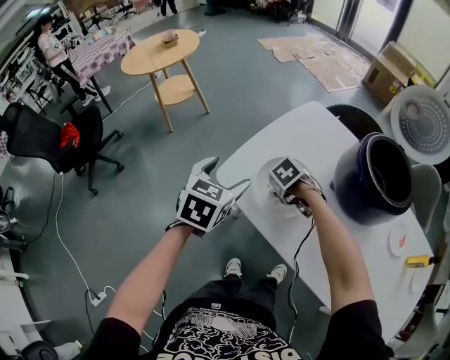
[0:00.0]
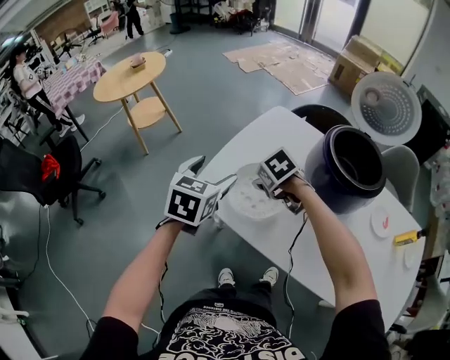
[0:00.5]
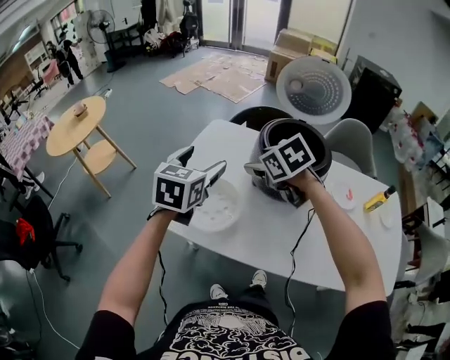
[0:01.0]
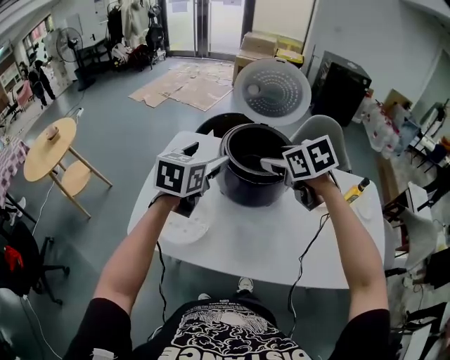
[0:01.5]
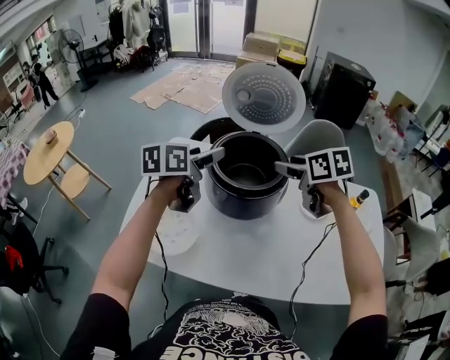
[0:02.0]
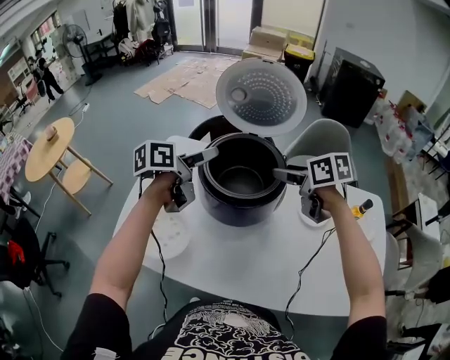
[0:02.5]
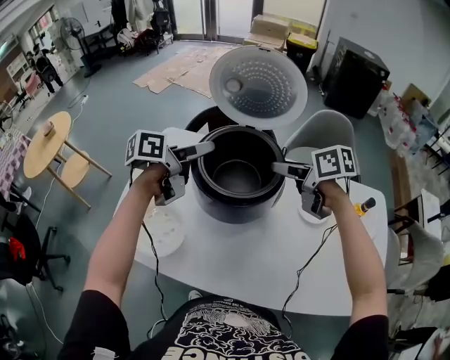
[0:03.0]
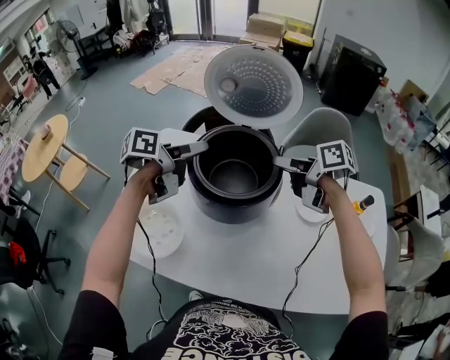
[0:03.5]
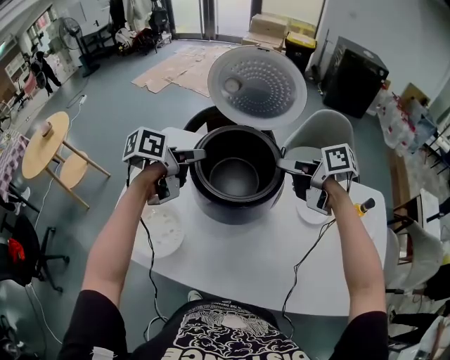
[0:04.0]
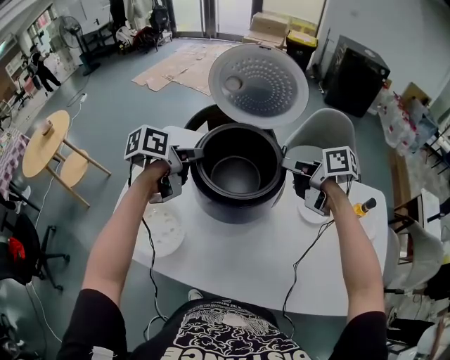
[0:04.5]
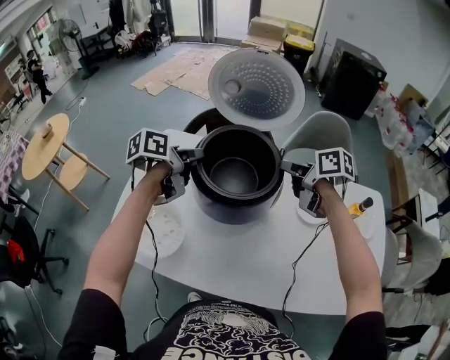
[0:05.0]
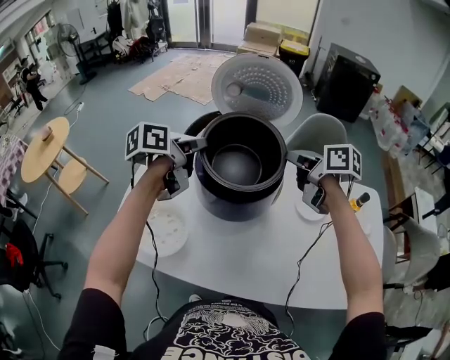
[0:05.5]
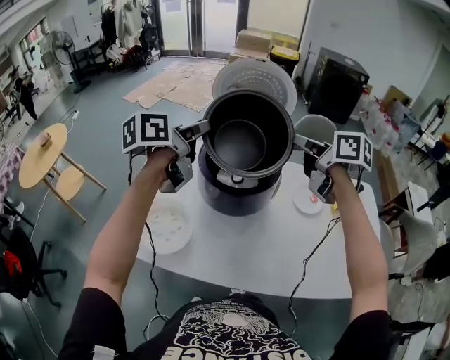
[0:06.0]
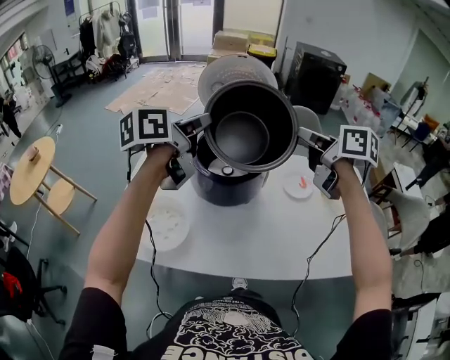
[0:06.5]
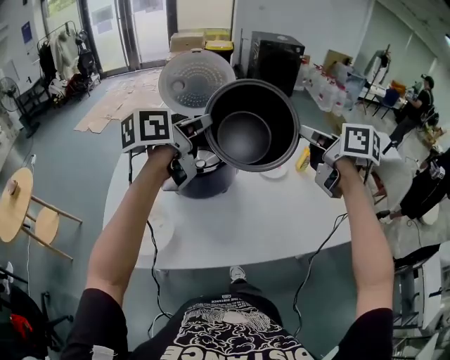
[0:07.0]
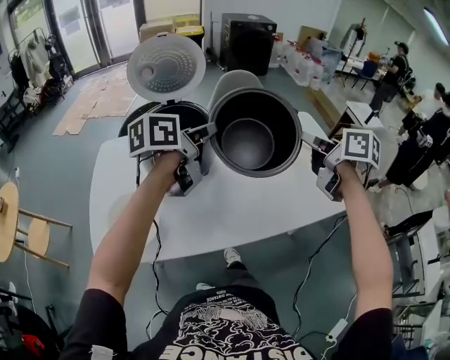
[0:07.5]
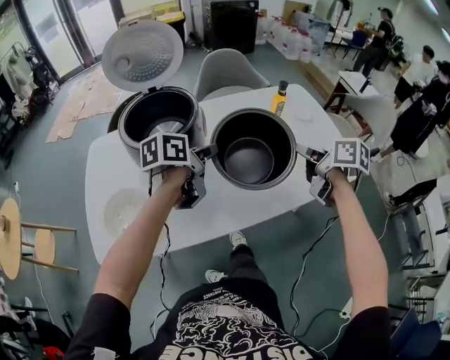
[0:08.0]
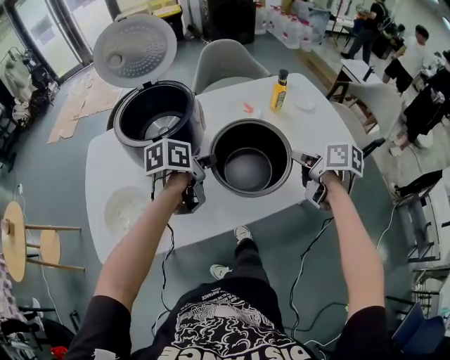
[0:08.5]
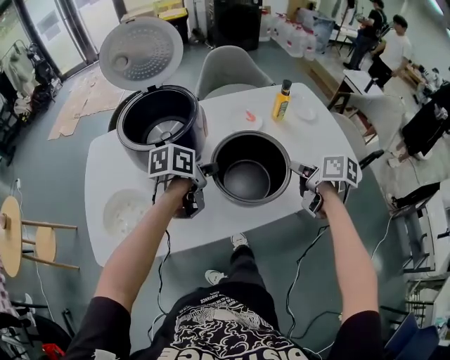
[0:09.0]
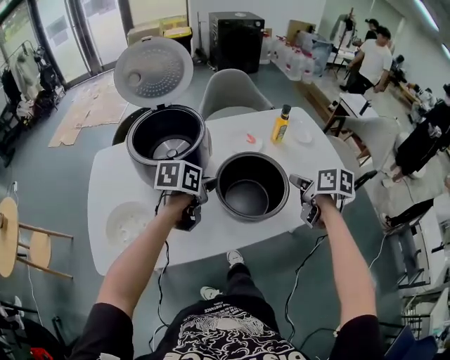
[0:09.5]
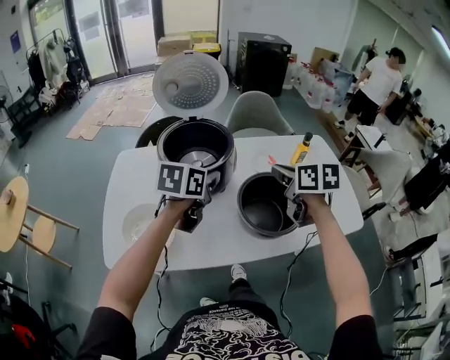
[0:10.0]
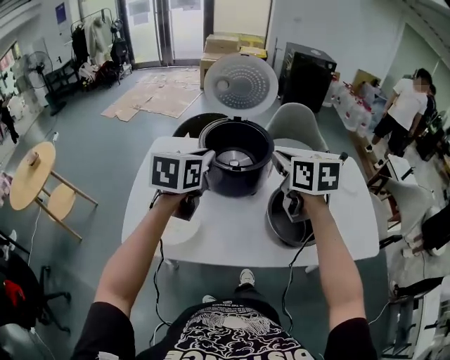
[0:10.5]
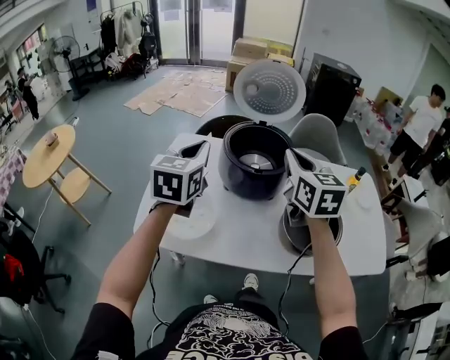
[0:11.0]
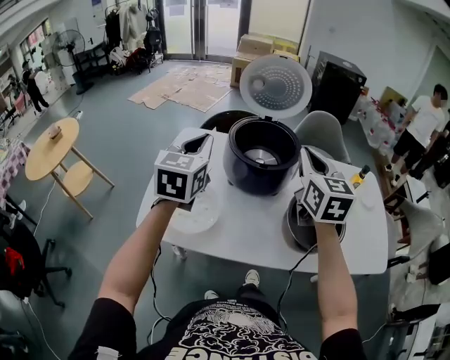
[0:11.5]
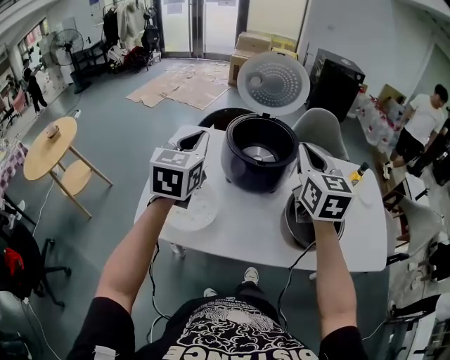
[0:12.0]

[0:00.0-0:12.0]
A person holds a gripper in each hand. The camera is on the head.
0.0 to 2.0 s: The two grippers travel together, some 40 cm. The right gripper tilts its fingers roughly 50 degrees upward. The left gripper swivels approximately 40 degrees.
2.0 to 4.0 s: The left gripper shifts approximately 10 cm downward and forward, changes its angle by approximately 30 degrees, and closes up, while the right gripper moves forward, downward and to the right, approximately 10 cm, and rotates about 40 degrees.
4.0 to 6.0 s: The left gripper travels upward by roughly 15 cm, and swivels about 20 degrees; the right gripper heads upward and backward, covering about 15 cm, turns by about 30 degrees, and closes.
6.0 to 8.0 s: The left gripper changes place by approximately 35 cm, and rotates about 40 degrees. Meanwhile the right gripper changes place by approximately 40 cm, and turns by some 40 degrees.
8.0 to 10.0 s: The right gripper heads to the left, covering about 15 cm, and turns by about 30 degrees; the left gripper is displaced to the left by approximately 5 cm, and swivels some 30 degrees.
10.0 to 12.0 s: Both grippers move to the left and upward, about 20 cm. The right gripper rotates some 30 degrees, while the left gripper turns by roughly 40 degrees.

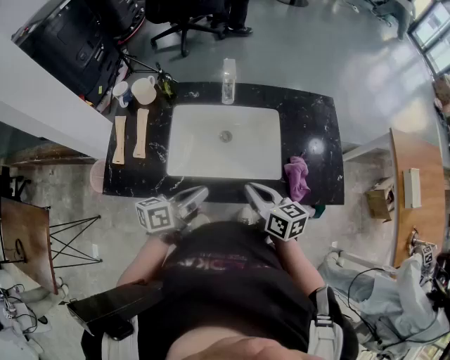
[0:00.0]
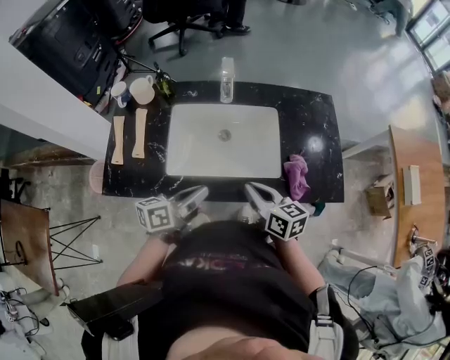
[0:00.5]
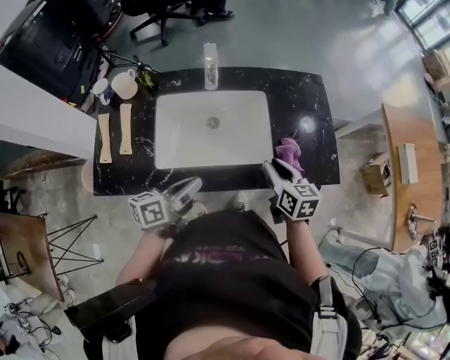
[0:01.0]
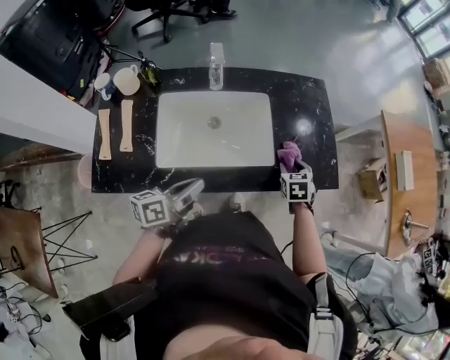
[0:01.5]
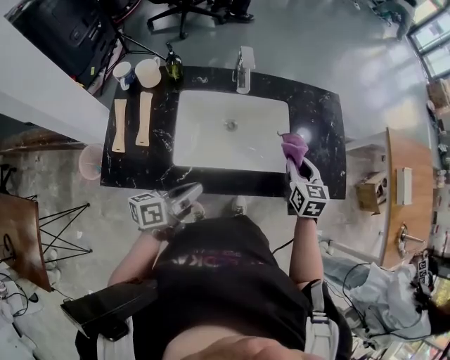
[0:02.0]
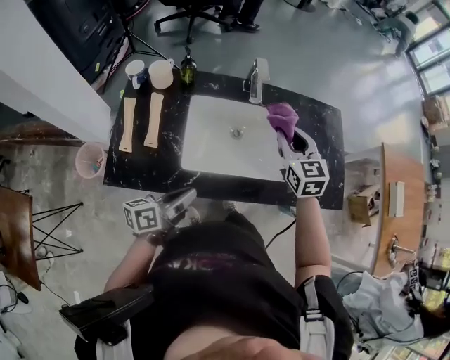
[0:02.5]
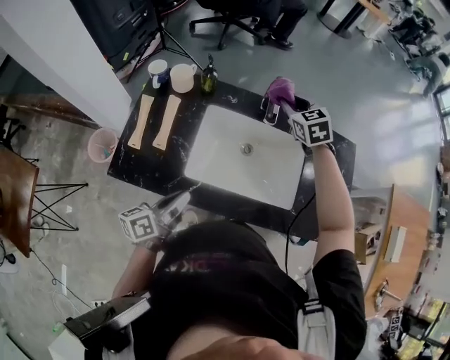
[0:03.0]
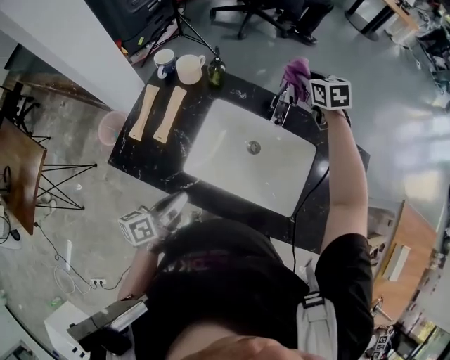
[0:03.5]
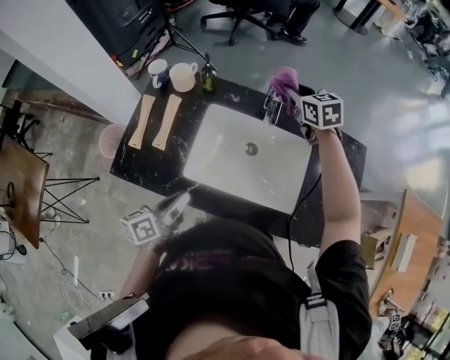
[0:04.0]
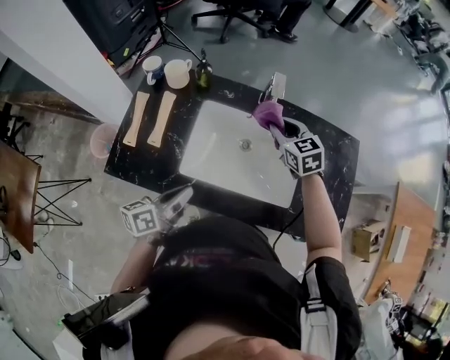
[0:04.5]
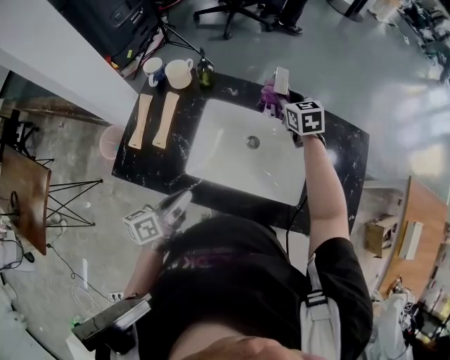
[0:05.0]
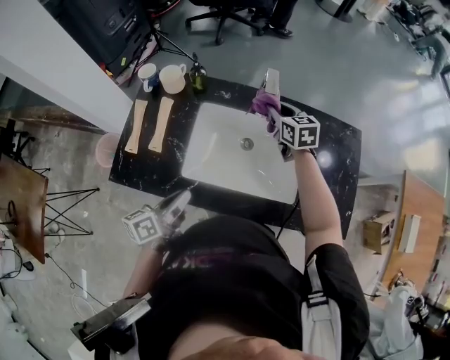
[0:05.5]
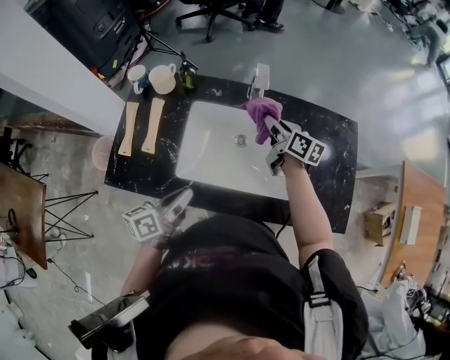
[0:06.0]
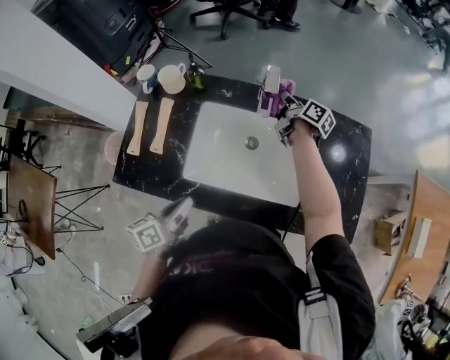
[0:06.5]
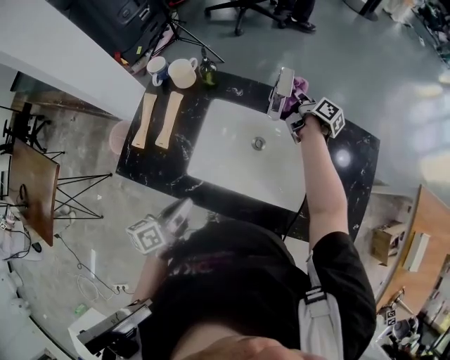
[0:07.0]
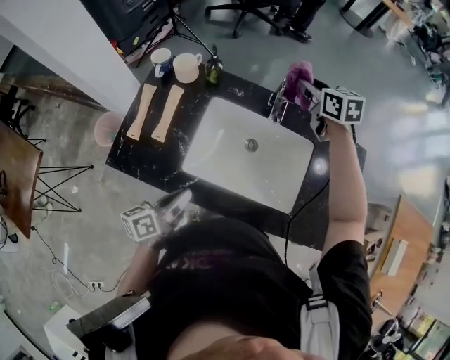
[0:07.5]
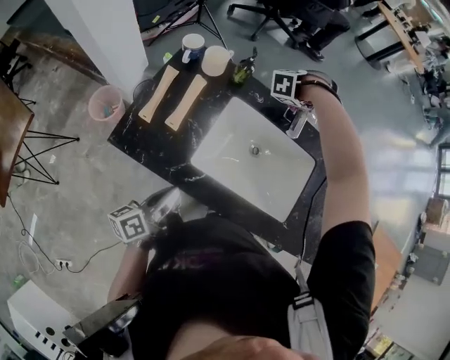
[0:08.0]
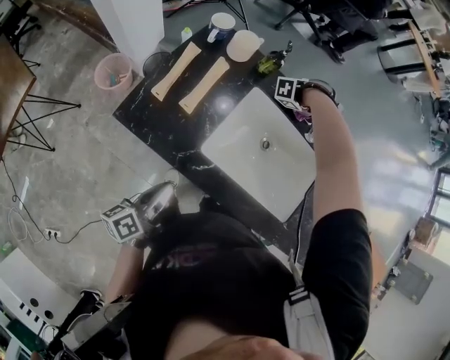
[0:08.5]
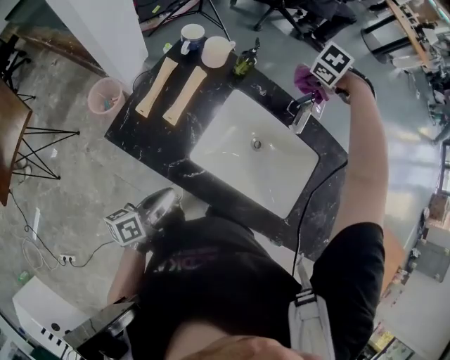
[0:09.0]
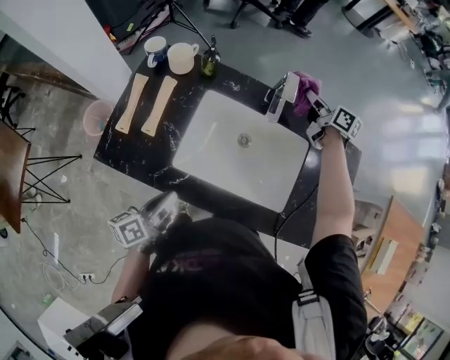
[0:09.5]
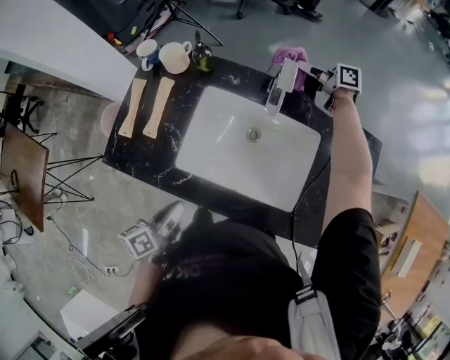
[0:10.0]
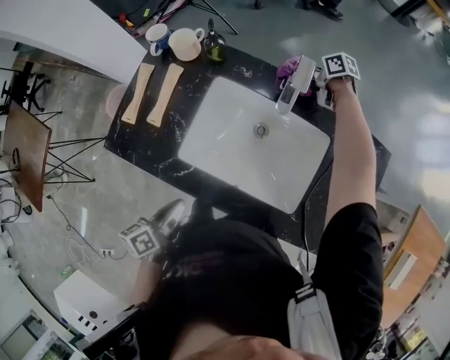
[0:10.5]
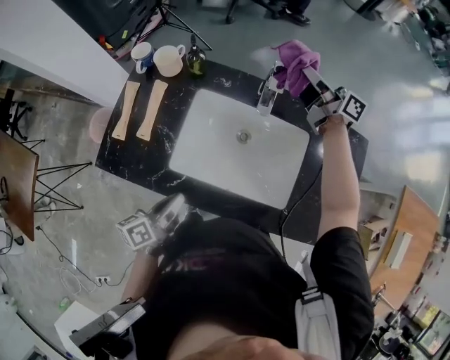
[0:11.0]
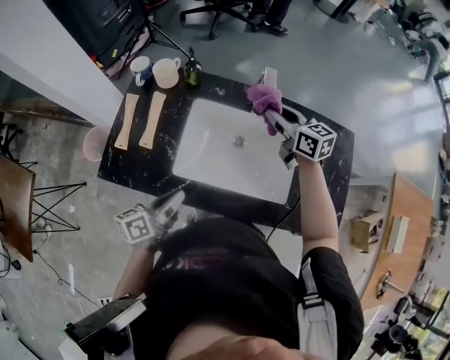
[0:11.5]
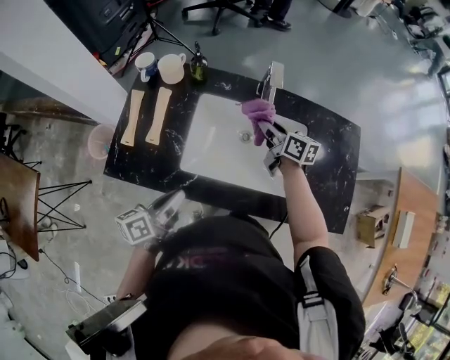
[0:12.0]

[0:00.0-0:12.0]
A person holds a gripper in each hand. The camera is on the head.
0.0 to 2.0 s: The left gripper changes place by roughly 5 cm; the right gripper reaches approximately 10 cm downward, then returns, and changes its angle by approximately 40 degrees.
2.0 to 4.0 s: The right gripper moves roughly 35 cm, and rotates roughly 40 degrees; the left gripper ends up approximately 5 cm from where it was, and rotates some 30 degrees.
4.0 to 6.0 s: The right gripper moves forward and backward over some 10 cm, changing direction 2 times, and twists approximately 50 degrees clockwise, seen from behind.
6.0 to 8.0 s: The right gripper moves up and down over some 15 cm, changing direction 2 times, and points its fingers approximately 40 degrees further downward. Meanwhile the left gripper shifts by approximately 10 cm, and rotates about 20 degrees.
8.0 to 10.0 s: The right gripper goes up and down, roughly 15 cm each way, reversing 2 times, and tips its fingers upward by approximately 40 degrees; the left gripper changes place by about 5 cm.
10.0 to 12.0 s: The right gripper goes up and down, roughly 20 cm each way, reversing 2 times, and rotates roughly 30 degrees.

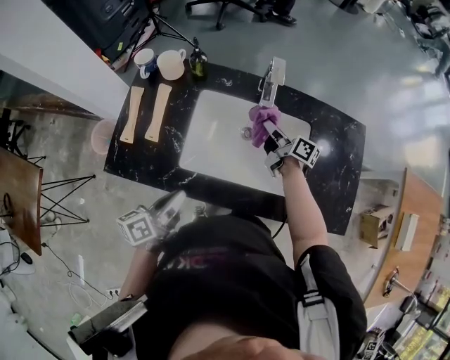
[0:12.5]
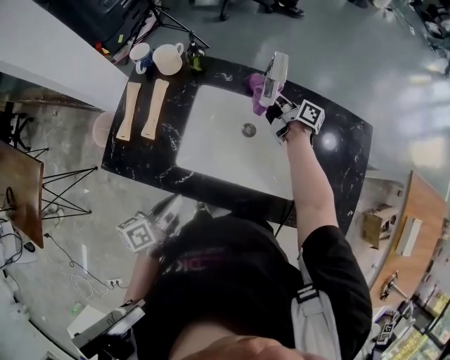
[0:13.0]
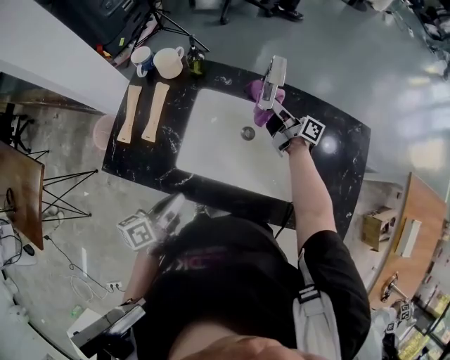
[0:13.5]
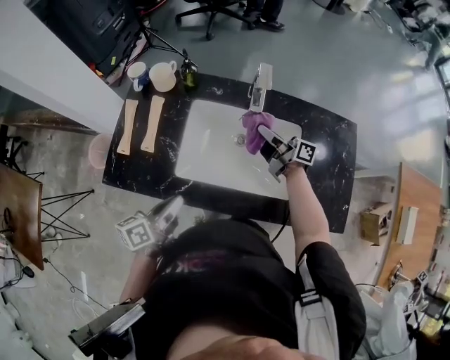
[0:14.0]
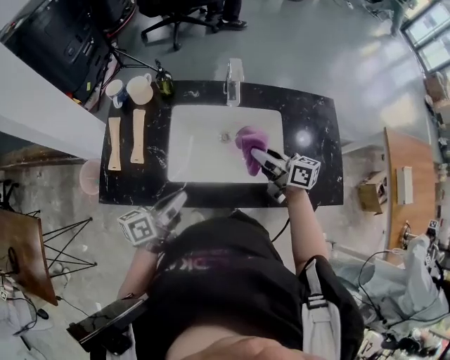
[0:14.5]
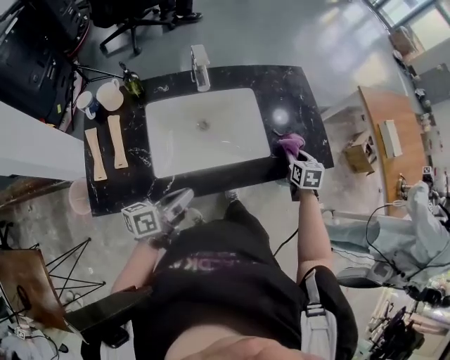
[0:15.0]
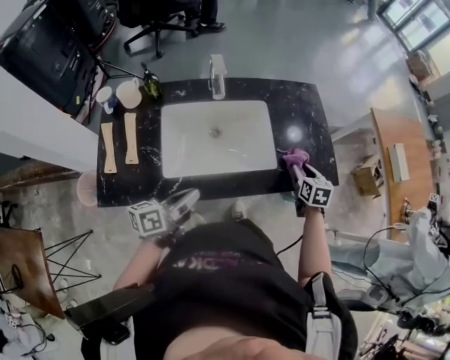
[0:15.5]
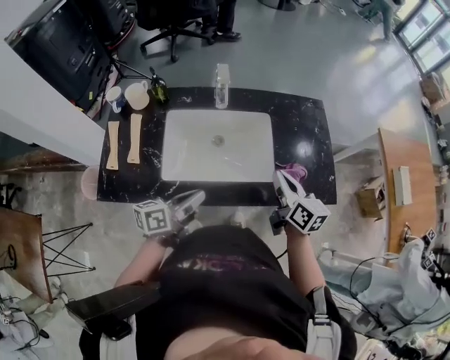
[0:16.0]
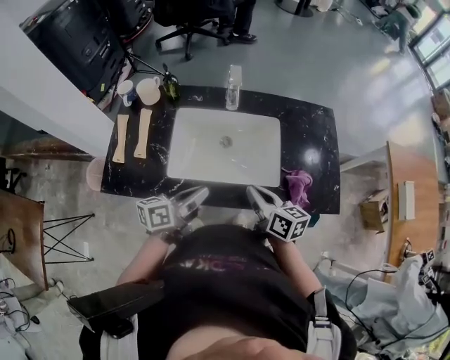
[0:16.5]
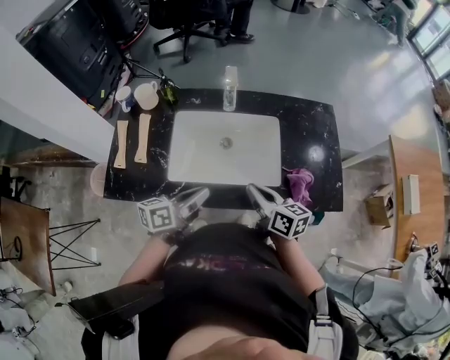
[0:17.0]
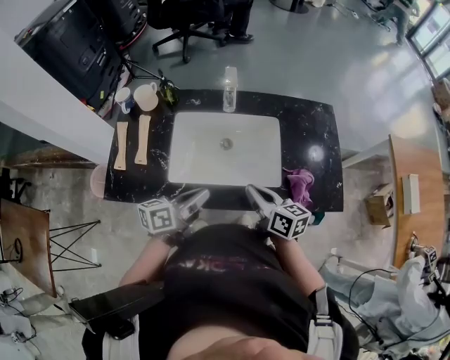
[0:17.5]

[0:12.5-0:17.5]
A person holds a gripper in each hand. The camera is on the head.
12.5 to 15.0 s: The left gripper ends up some 5 cm from where it was, and turns by approximately 30 degrees; the right gripper reaches some 10 cm upward, then returns, and tilts its fingers approximately 30 degrees downward.
15.0 to 17.5 s: The left gripper changes place by roughly 5 cm; the right gripper ends up roughly 25 cm from where it was, turns by roughly 50 degrees, and closes.
